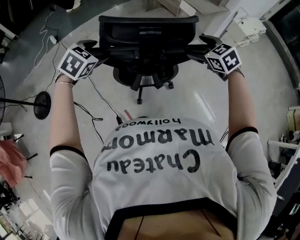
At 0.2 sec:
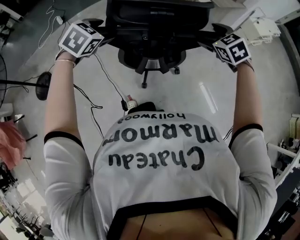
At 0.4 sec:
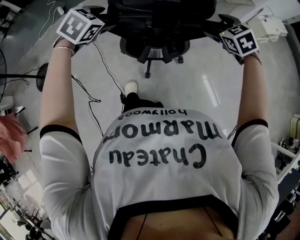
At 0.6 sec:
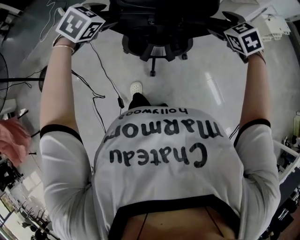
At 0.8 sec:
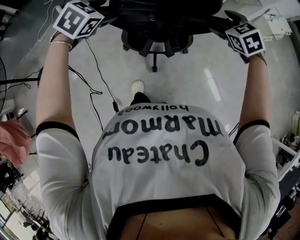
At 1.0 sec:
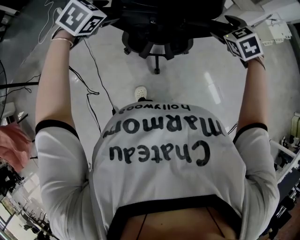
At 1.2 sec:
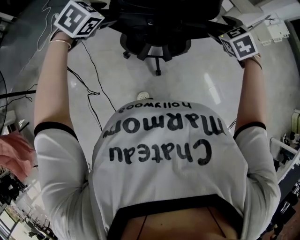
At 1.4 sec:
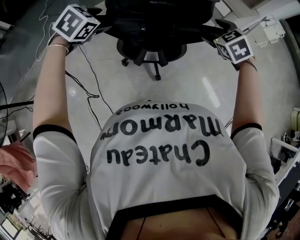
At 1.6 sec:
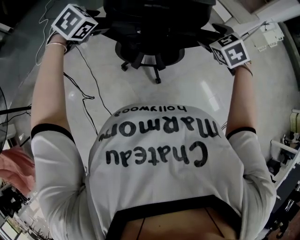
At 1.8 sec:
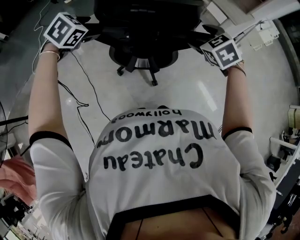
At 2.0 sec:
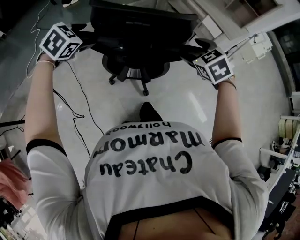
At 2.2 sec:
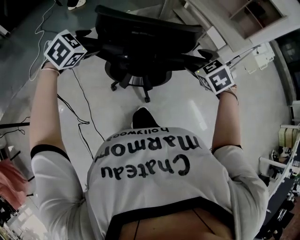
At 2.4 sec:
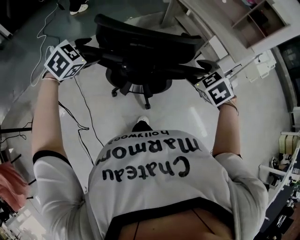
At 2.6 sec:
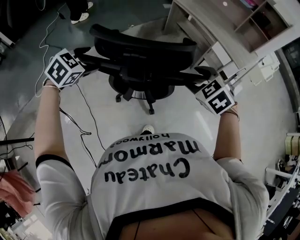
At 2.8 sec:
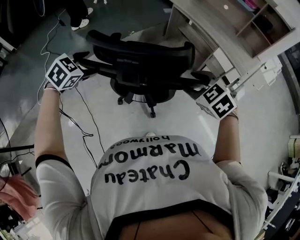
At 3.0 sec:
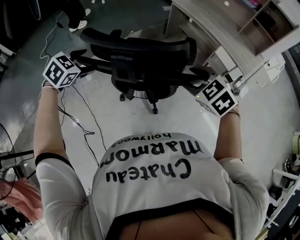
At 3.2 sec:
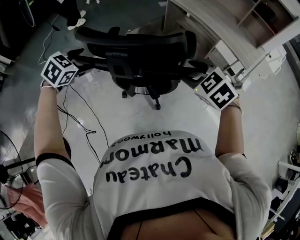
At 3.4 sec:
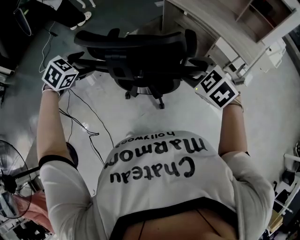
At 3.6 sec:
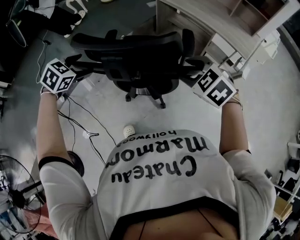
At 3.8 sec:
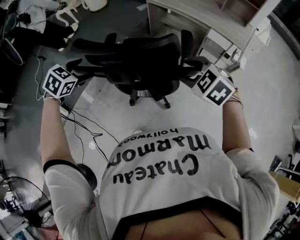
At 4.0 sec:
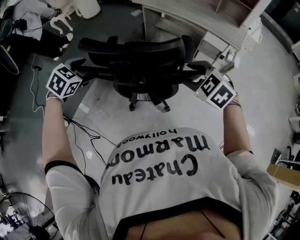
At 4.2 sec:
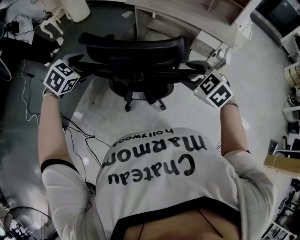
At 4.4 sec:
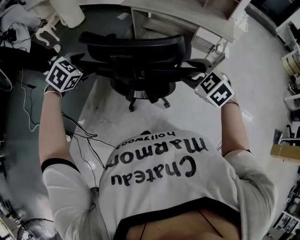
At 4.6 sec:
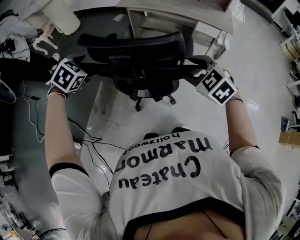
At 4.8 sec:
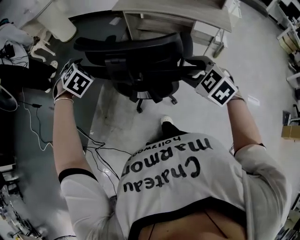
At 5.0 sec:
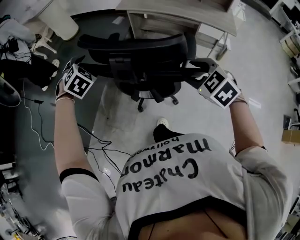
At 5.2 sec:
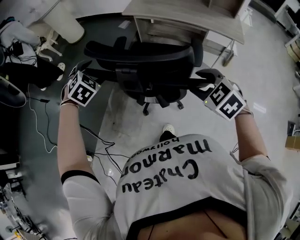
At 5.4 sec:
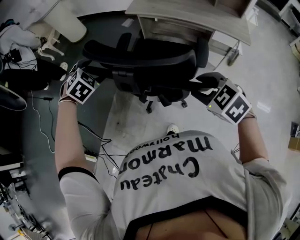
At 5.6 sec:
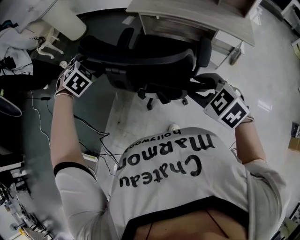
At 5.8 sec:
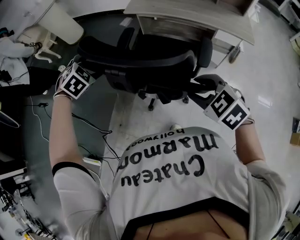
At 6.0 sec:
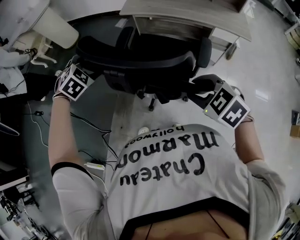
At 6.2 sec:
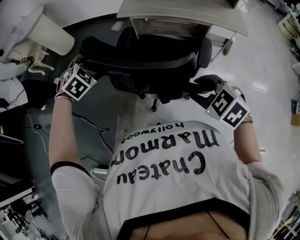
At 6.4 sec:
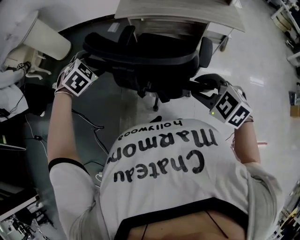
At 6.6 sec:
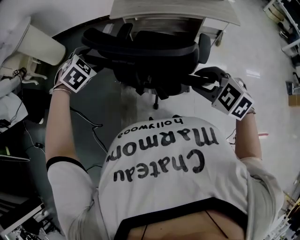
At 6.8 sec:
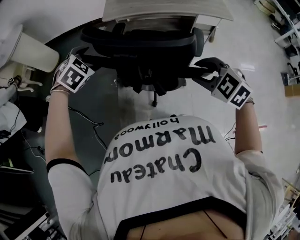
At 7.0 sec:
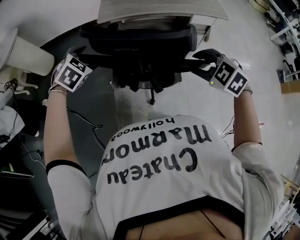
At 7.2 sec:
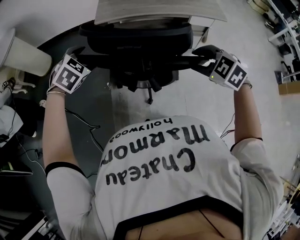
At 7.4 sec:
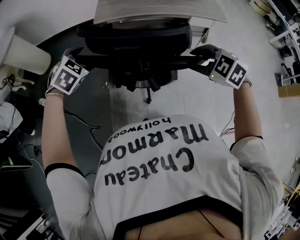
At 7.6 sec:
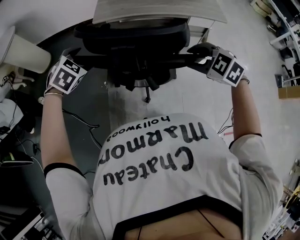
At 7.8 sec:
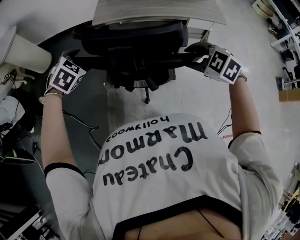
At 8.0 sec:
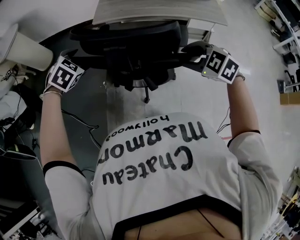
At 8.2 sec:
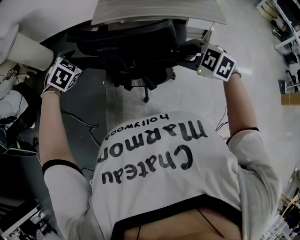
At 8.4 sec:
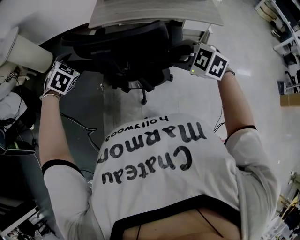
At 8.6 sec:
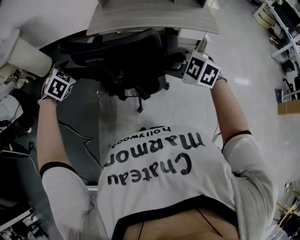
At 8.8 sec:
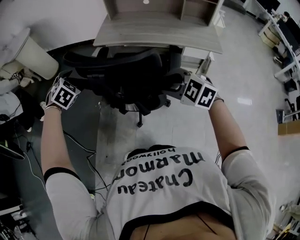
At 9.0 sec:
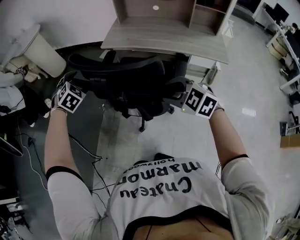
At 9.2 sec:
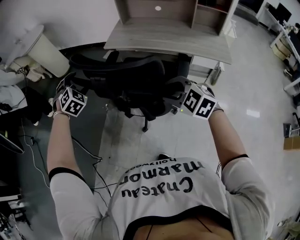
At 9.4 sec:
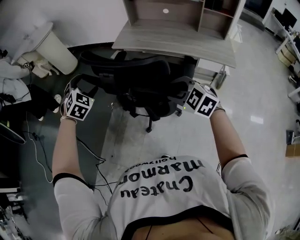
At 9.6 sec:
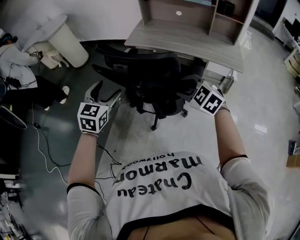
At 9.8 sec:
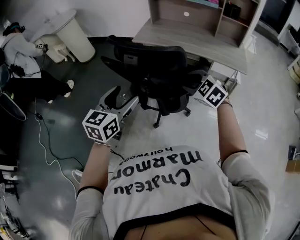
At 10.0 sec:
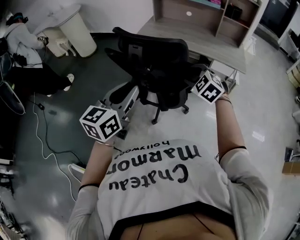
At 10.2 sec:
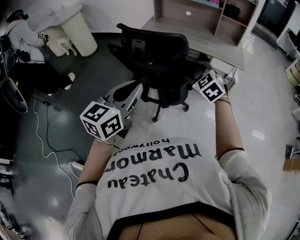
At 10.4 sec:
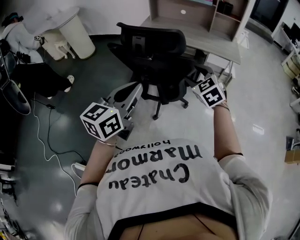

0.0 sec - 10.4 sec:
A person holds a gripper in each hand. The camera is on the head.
0.0 sec - 1.4 sec: The two grippers go approximately 20 cm forward and to the left.
1.4 sec - 3.0 sec: The right gripper swings forward and backward, approximately 15 cm each way, with 2 reversals. Meanwhile the left gripper swings forward and backward, some 20 cm each way, with 2 reversals.
3.0 sec - 4.4 sec: The grippers stay close to where they were, moving slightly.
4.4 sec - 6.0 sec: The left gripper changes place by roughly 5 cm, and swivels approximately 20 degrees, while the right gripper is displaced backward by approximately 10 cm.
6.0 sec - 7.4 sec: The two grippers go some 5 cm to the right.
7.4 sec - 9.0 sec: The left gripper swivels approximately 20 degrees; the right gripper is displaced to the right by roughly 5 cm, and rotates roughly 20 degrees.
9.0 sec - 10.4 sec: The left gripper shifts by about 40 cm, tips its fingers upward by roughly 40 degrees, and closes its fingers. Meanwhile the right gripper ends up approximately 10 cm from where it was, and swivels about 30 degrees.

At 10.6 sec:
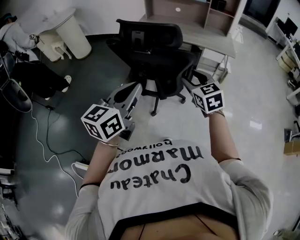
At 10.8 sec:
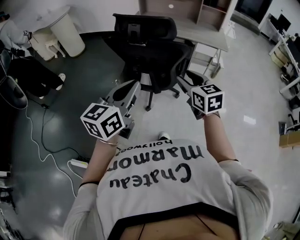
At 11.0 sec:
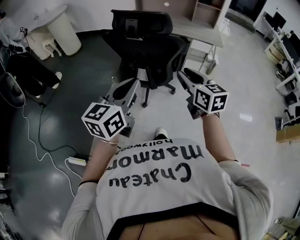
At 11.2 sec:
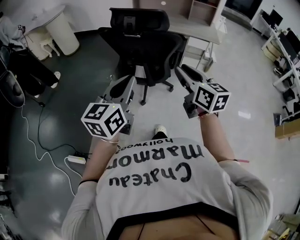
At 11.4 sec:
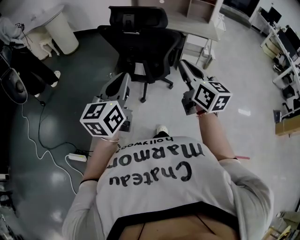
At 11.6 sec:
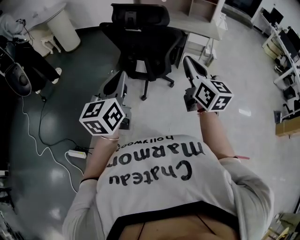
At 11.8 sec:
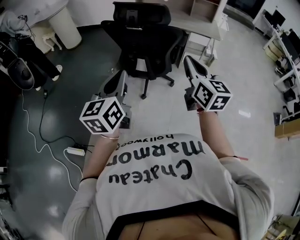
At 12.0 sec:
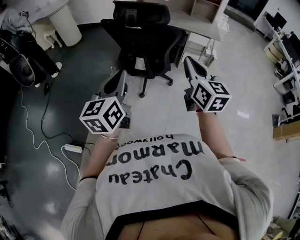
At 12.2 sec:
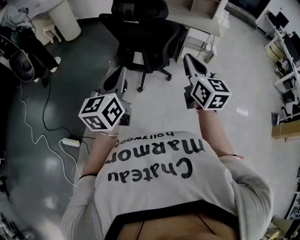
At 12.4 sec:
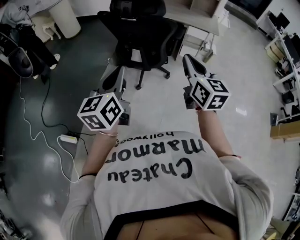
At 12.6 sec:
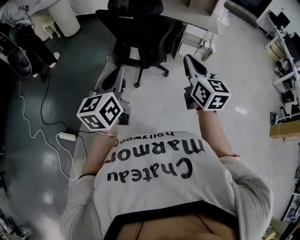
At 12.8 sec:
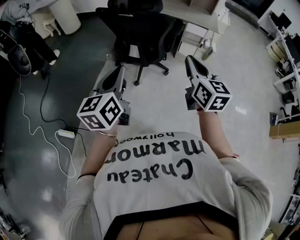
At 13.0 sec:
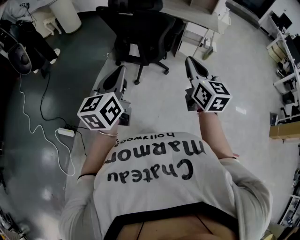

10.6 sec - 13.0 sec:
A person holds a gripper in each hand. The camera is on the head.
10.6 sec - 11.8 sec: The left gripper is displaced backward by some 10 cm, while the right gripper travels backward and upward by roughly 20 cm, swivels approximately 30 degrees, and closes its fingers.
11.8 sec - 13.0 sec: Both grippers move to the right and backward, roughly 10 cm.

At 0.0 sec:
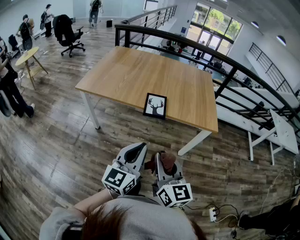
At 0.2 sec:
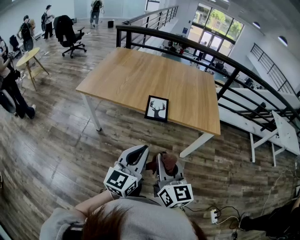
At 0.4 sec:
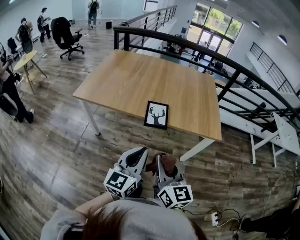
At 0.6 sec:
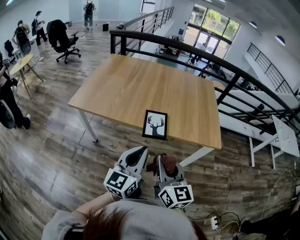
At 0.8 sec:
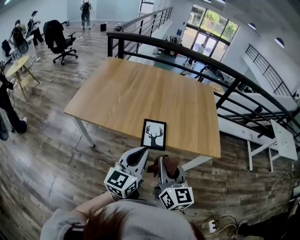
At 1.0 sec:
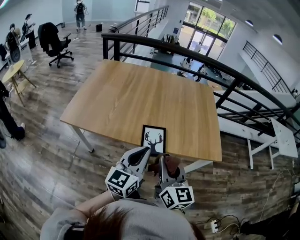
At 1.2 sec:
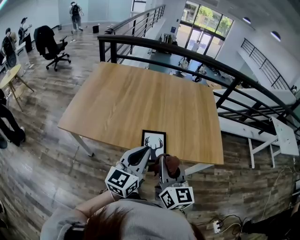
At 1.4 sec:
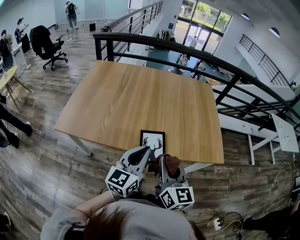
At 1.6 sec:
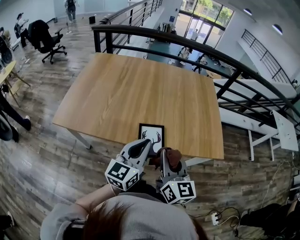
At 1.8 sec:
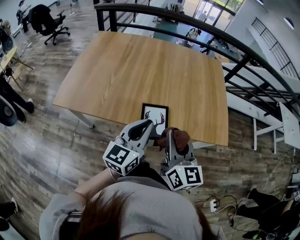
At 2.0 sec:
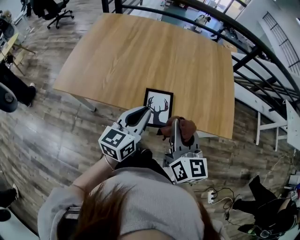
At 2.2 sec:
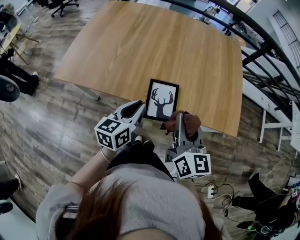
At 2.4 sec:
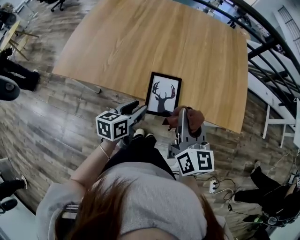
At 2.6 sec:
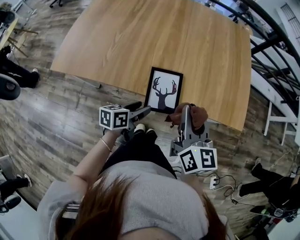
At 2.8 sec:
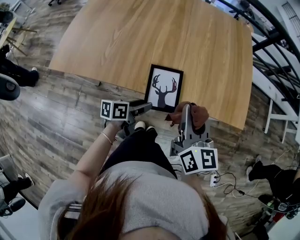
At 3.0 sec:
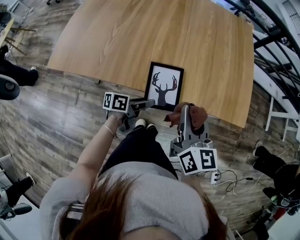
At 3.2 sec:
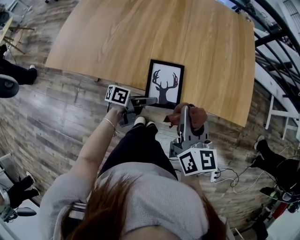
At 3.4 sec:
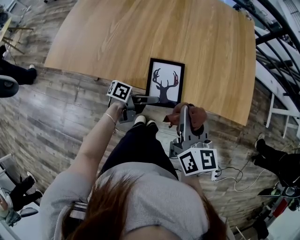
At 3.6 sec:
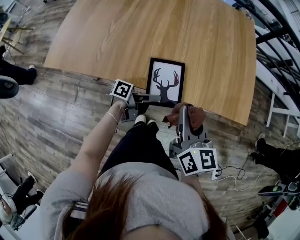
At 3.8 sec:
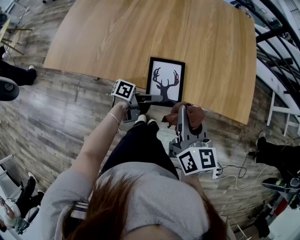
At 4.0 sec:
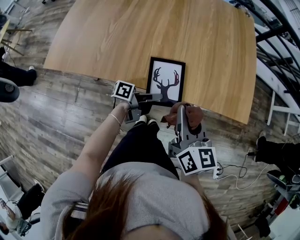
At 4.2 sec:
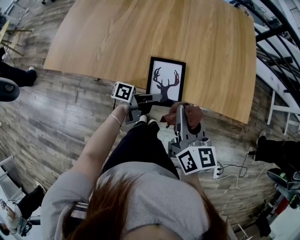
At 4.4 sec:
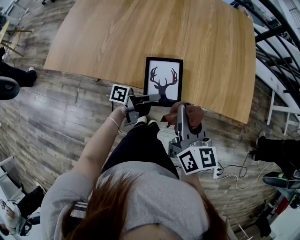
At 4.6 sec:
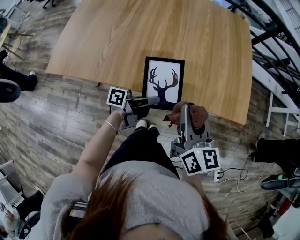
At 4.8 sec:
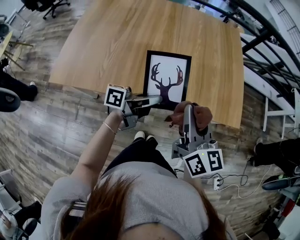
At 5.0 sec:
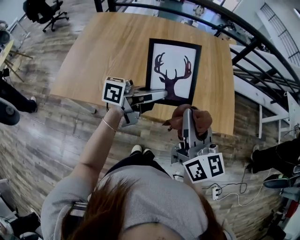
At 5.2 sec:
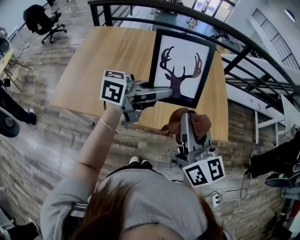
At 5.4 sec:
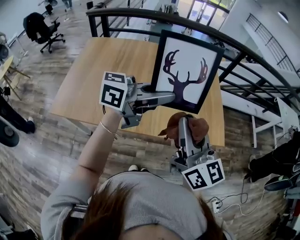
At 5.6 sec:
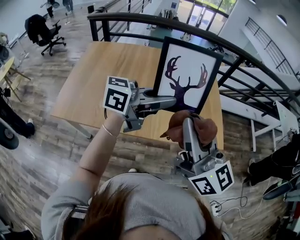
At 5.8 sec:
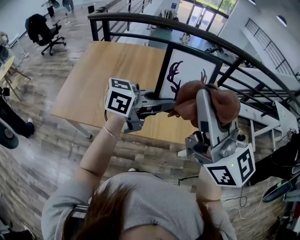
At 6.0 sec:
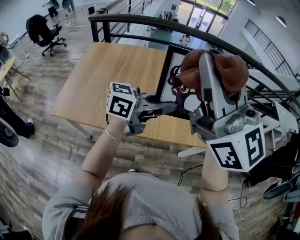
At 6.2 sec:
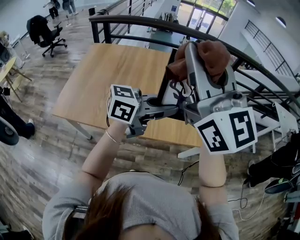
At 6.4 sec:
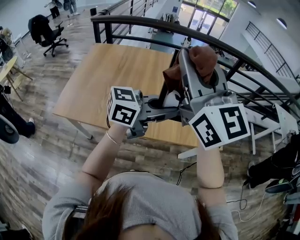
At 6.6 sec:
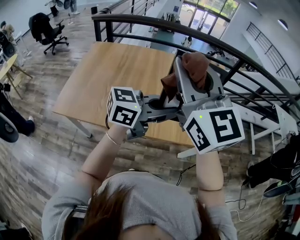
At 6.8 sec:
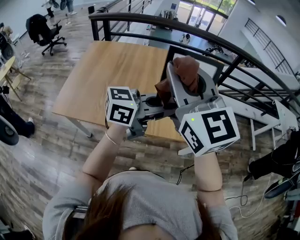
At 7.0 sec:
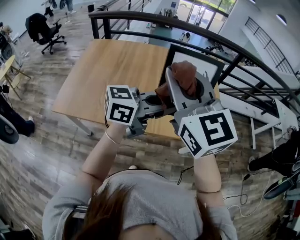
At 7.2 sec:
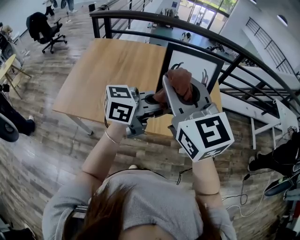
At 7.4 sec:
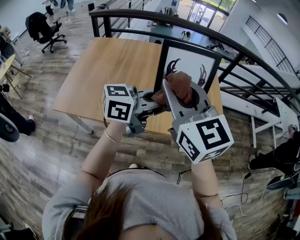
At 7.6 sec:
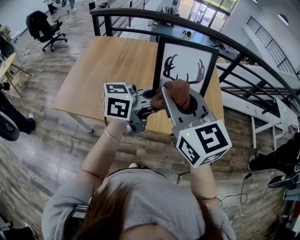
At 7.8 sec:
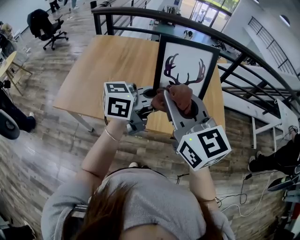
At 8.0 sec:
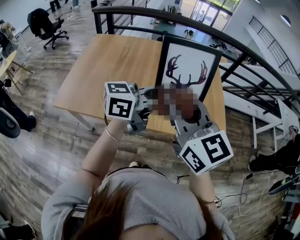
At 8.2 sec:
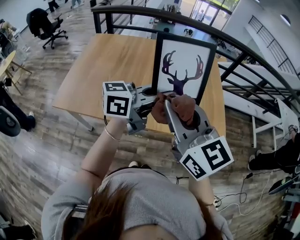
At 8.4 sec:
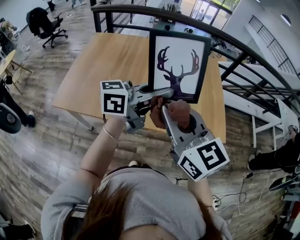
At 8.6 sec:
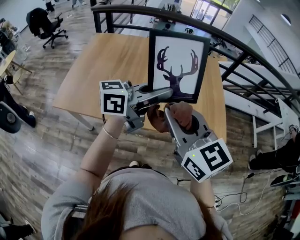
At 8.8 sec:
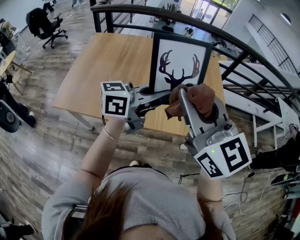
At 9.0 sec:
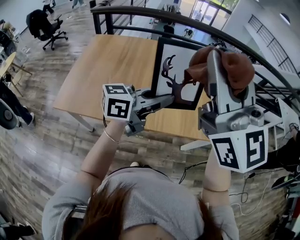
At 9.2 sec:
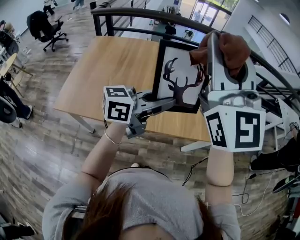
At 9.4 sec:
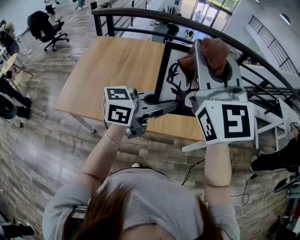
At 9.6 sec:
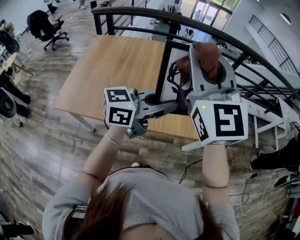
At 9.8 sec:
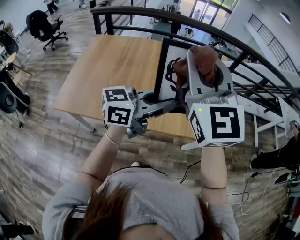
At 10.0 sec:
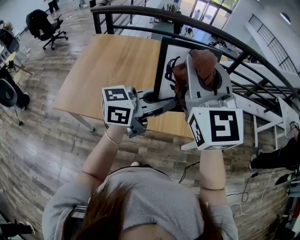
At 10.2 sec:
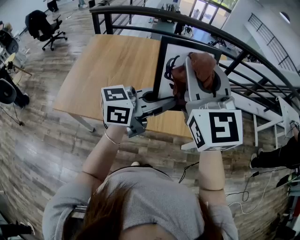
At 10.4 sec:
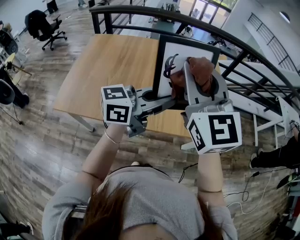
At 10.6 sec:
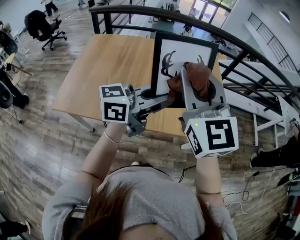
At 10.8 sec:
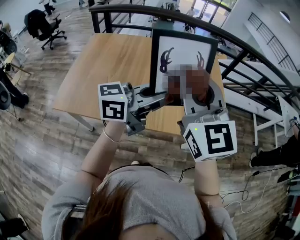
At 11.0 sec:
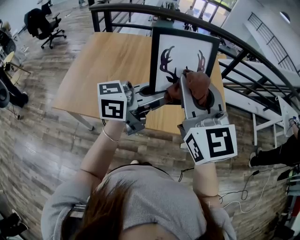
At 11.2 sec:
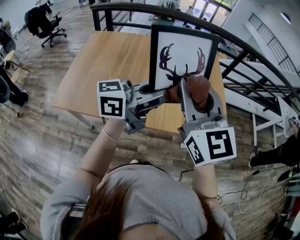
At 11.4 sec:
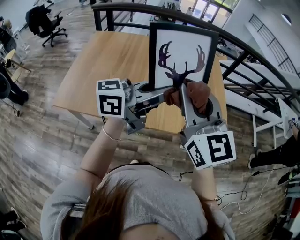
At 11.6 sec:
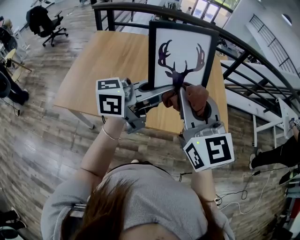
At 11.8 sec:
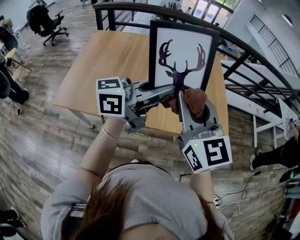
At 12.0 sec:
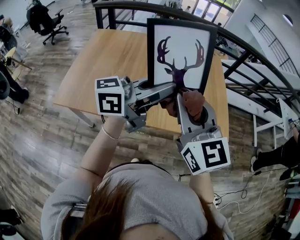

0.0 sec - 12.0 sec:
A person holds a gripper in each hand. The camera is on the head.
0.0 sec - 1.6 sec: Both grippers move forward, some 35 cm.
1.6 sec - 3.0 sec: The left gripper heads downward, covering approximately 30 cm, twists roughly 60 degrees counterclockwise, seen from behind, and opens up, while the right gripper is displaced downward and forward by some 10 cm.
3.0 sec - 4.4 sec: The left gripper ends up about 5 cm from where it was, turns by roughly 30 degrees, and closes its fingers.
4.4 sec - 6.0 sec: Both grippers travel together upward, about 40 cm. The left gripper rotates around the line of its fingers by roughly 60 degrees, clockwise from behind. The right gripper tilts its fingers roughly 40 degrees upward.
6.0 sec - 7.6 sec: The right gripper moves downward, approximately 15 cm, and changes its angle by approximately 30 degrees.
7.6 sec - 9.0 sec: The right gripper heads upward, covering some 15 cm, and turns by roughly 30 degrees.
9.0 sec - 10.4 sec: The right gripper travels downward and to the left by approximately 10 cm.
10.4 sec - 12.0 sec: The right gripper moves downward and backward, roughly 10 cm.
